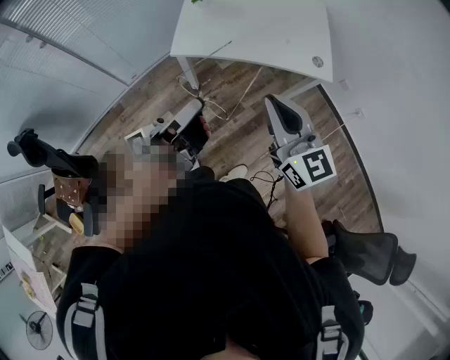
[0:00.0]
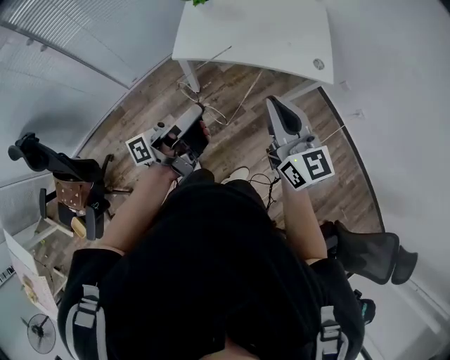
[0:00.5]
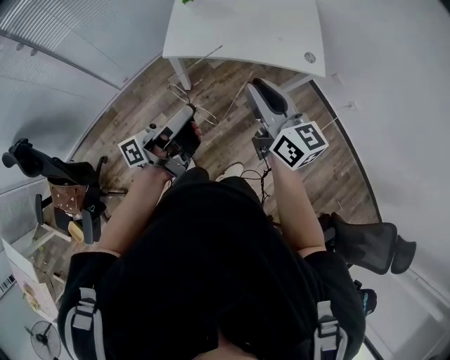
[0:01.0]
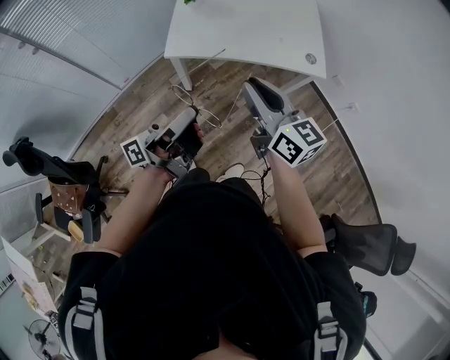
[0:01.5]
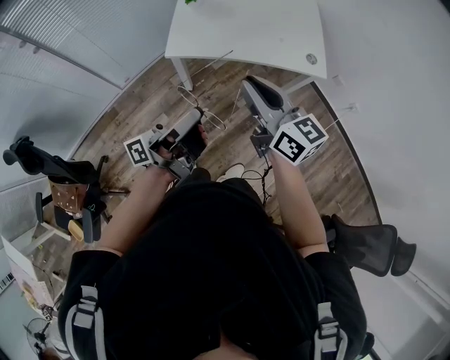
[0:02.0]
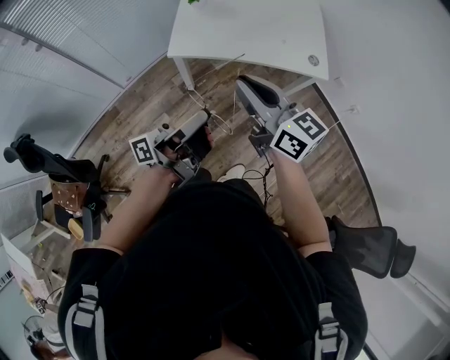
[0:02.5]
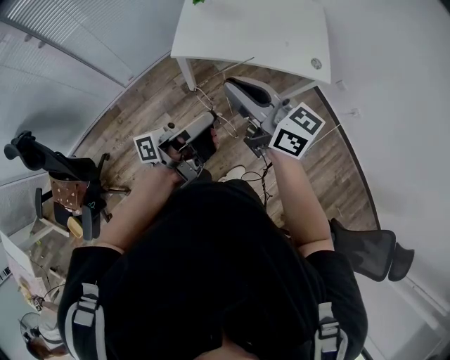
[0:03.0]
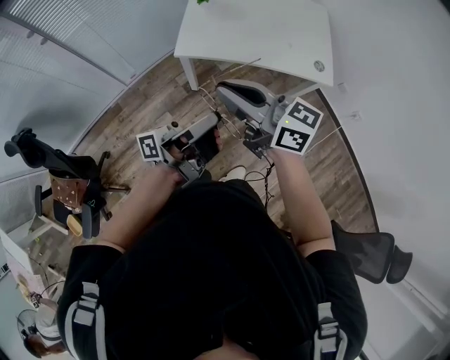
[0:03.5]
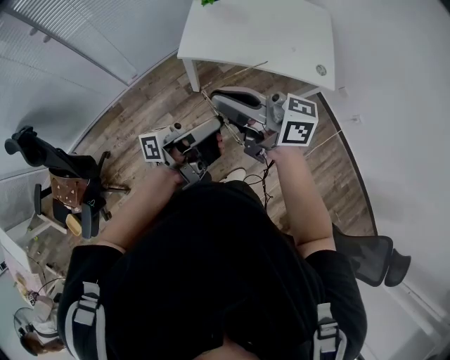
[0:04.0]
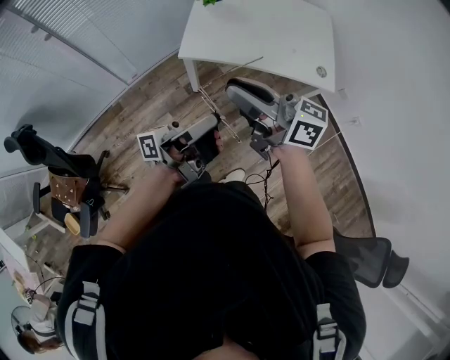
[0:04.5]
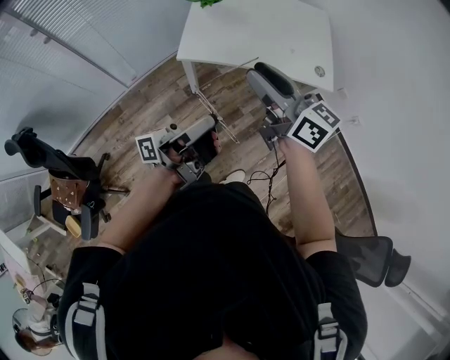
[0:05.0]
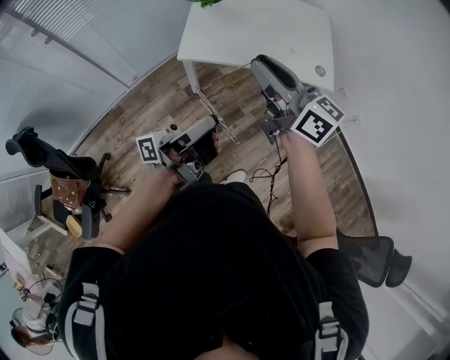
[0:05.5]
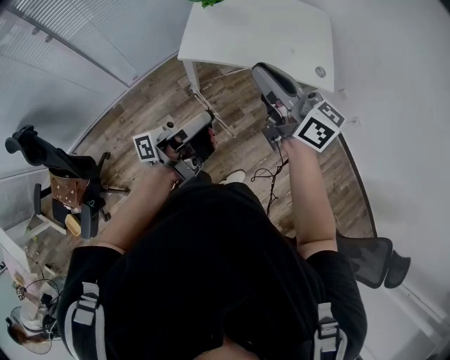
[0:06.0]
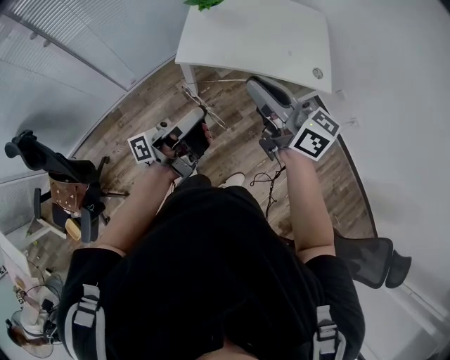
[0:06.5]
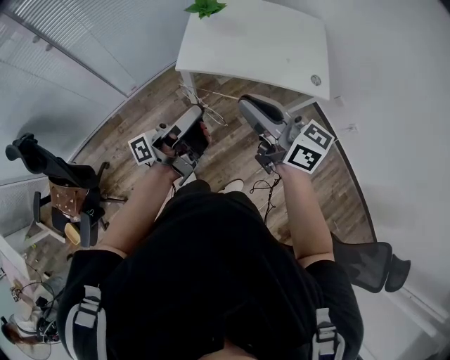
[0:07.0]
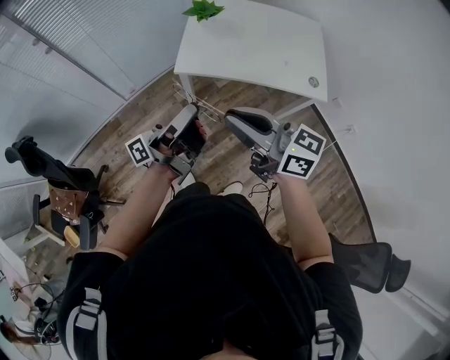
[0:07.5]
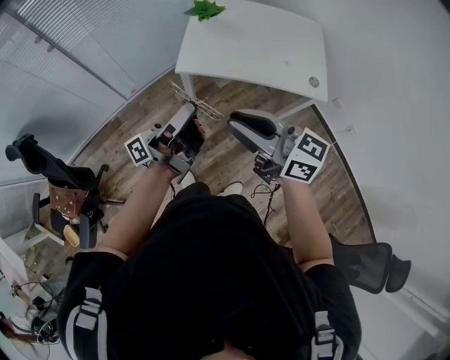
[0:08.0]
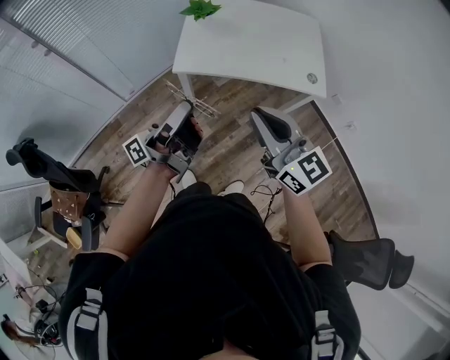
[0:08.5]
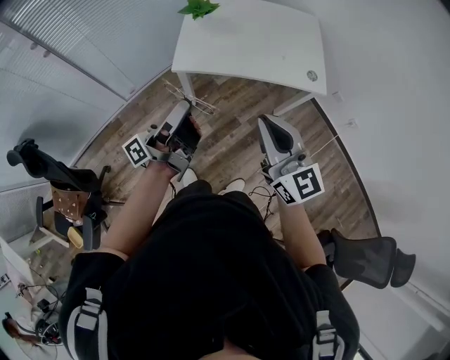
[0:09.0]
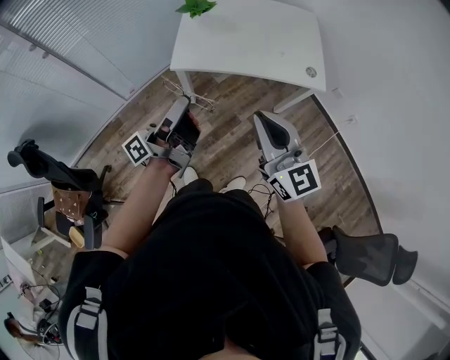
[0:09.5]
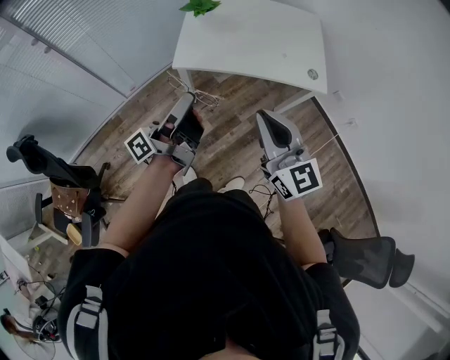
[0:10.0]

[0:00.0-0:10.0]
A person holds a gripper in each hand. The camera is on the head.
0.0 to 2.0 s: The right gripper changes place by approximately 5 cm.
2.0 to 4.0 s: The right gripper shifts by roughly 10 cm, and rotates roughly 40 degrees.
4.0 to 6.0 s: The right gripper ends up some 10 cm from where it was, swivels some 30 degrees, and opens and closes again.
6.0 to 8.0 s: The right gripper ends up about 10 cm from where it was.
8.0 to 10.0 s: The right gripper ends up approximately 5 cm from where it was, and rotates roughly 40 degrees.

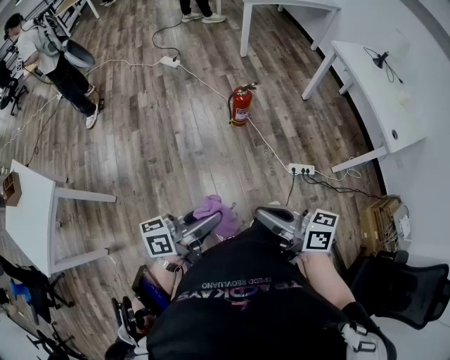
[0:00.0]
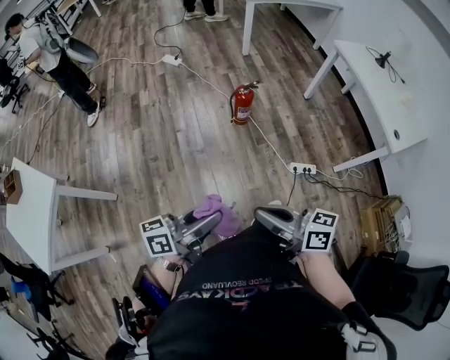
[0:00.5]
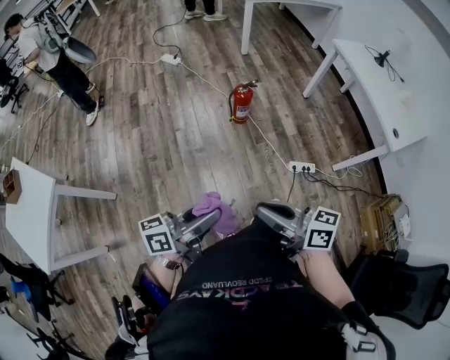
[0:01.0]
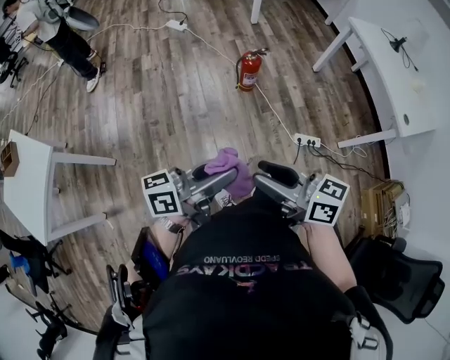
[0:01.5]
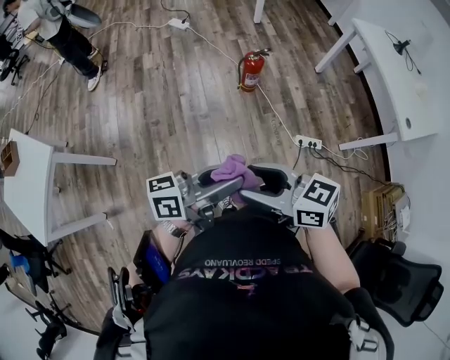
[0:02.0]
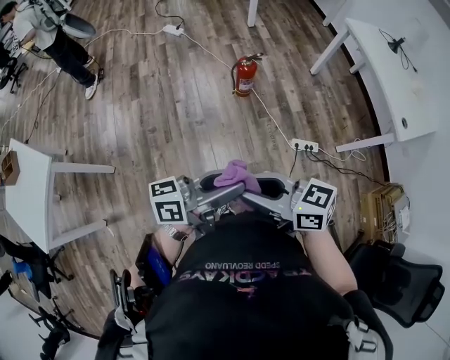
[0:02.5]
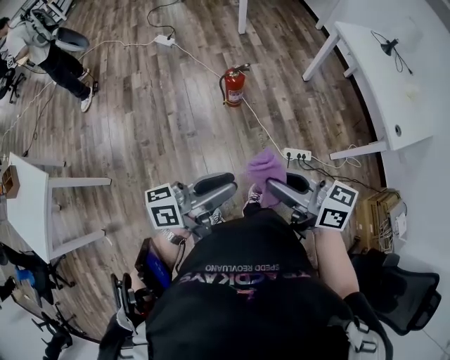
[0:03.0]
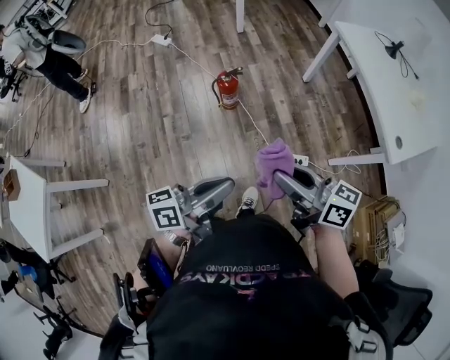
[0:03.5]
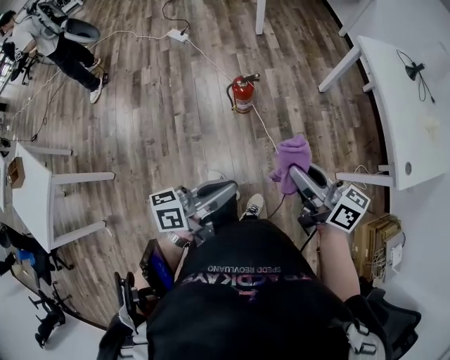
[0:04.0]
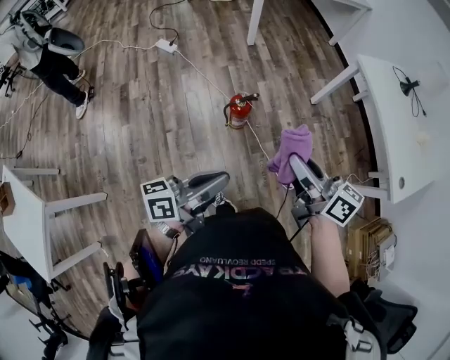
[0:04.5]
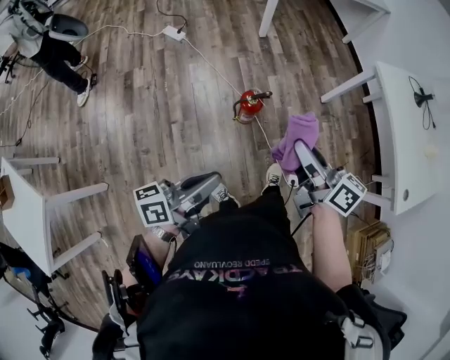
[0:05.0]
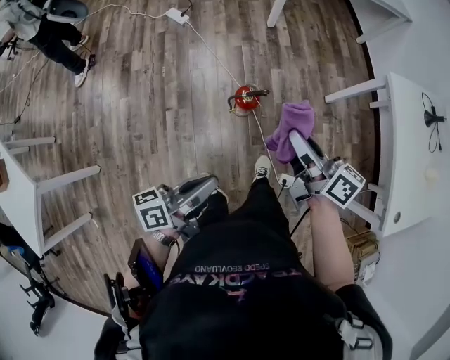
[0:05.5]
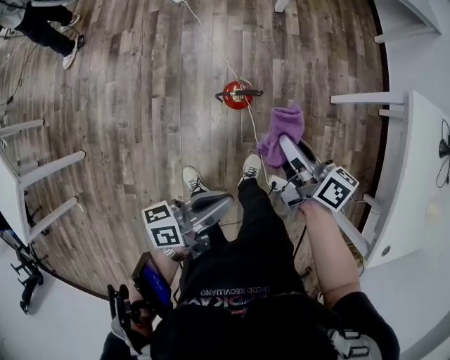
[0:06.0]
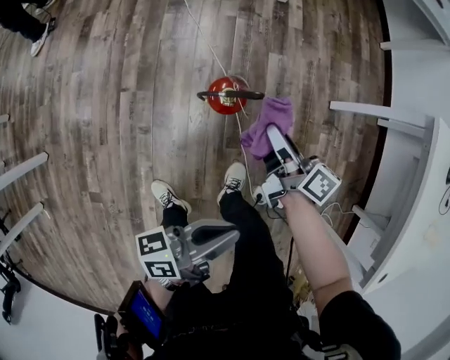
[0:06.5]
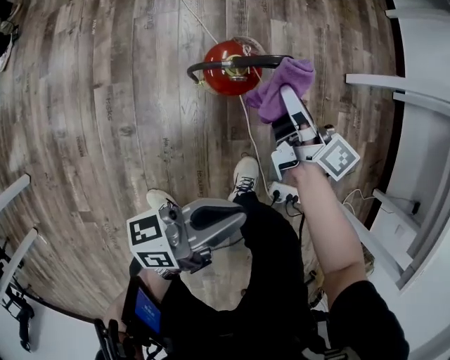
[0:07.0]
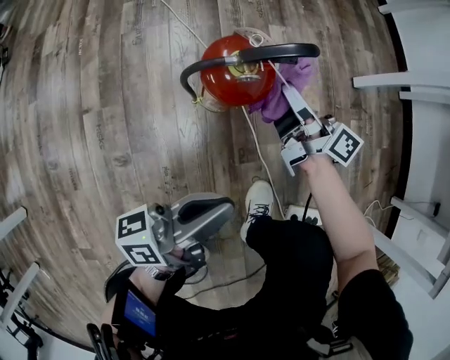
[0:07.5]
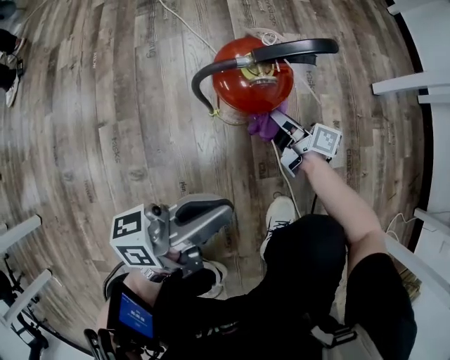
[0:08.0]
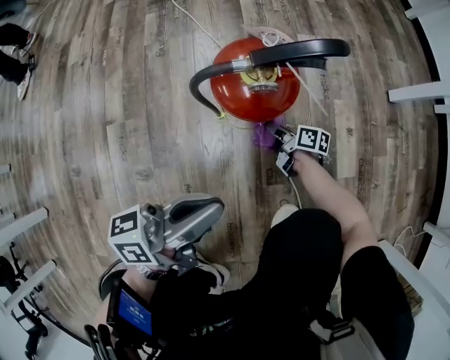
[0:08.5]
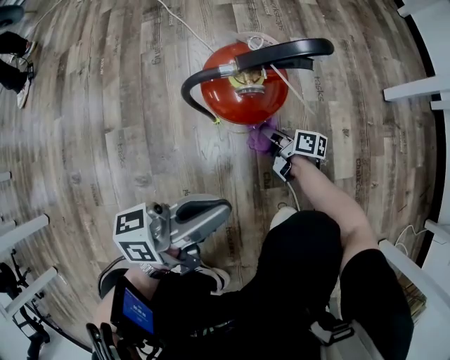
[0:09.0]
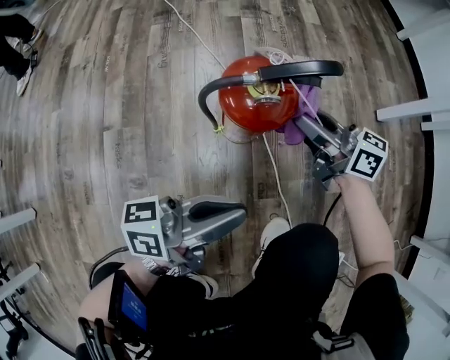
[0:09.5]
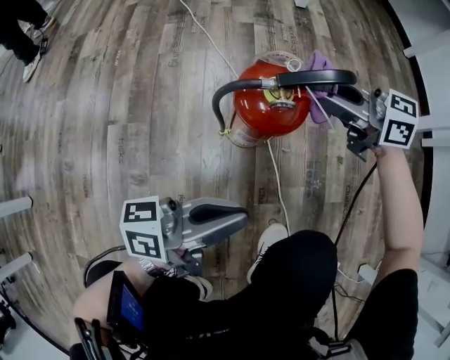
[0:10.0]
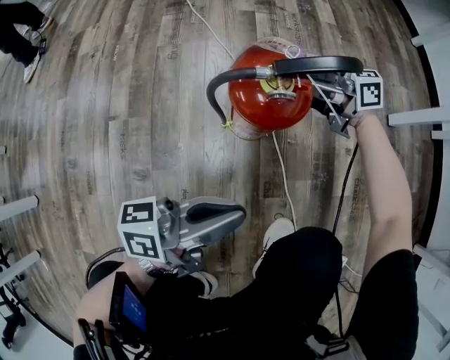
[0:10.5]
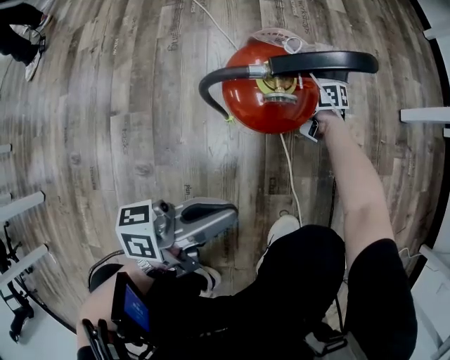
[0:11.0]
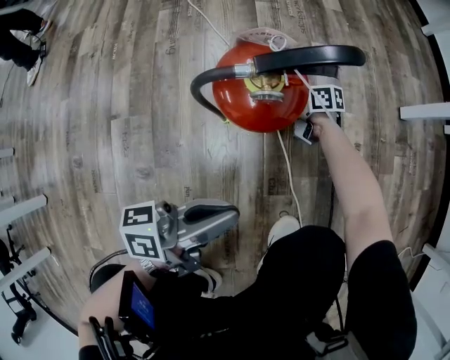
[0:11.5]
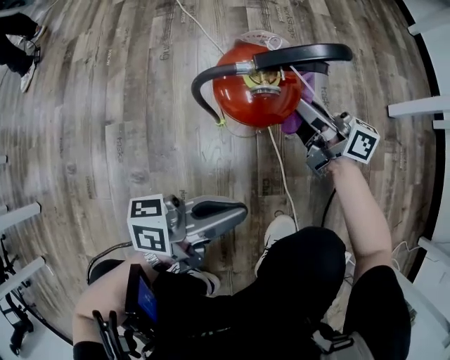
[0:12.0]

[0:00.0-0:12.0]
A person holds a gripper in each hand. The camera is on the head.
0.0 to 2.0 s: The right gripper changes place by approximately 5 cm, swivels about 20 degrees, and opens its fingers.
2.0 to 4.0 s: The right gripper changes place by some 35 cm, changes its angle by some 30 degrees, and closes. The left gripper changes place by some 20 cm, and closes its fingers.
4.0 to 6.0 s: Both grippers move forward and downward, roughly 35 cm.
6.0 to 8.0 s: The left gripper shifts some 40 cm downward, while the right gripper moves downward, approximately 60 cm.
8.0 to 10.0 s: The right gripper heads upward, covering roughly 20 cm, and rotates around the line of its fingers by about 50 degrees, counterclockwise from behind.
10.0 to 12.0 s: The left gripper heads downward, covering some 5 cm; the right gripper reaches some 30 cm downward, then returns, and rotates roughly 40 degrees.

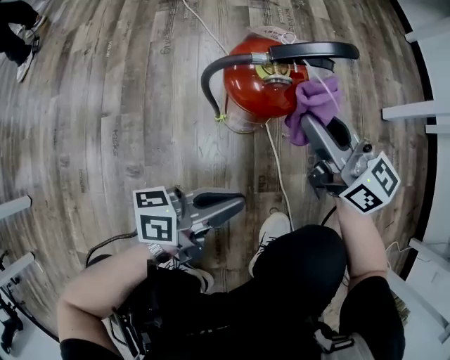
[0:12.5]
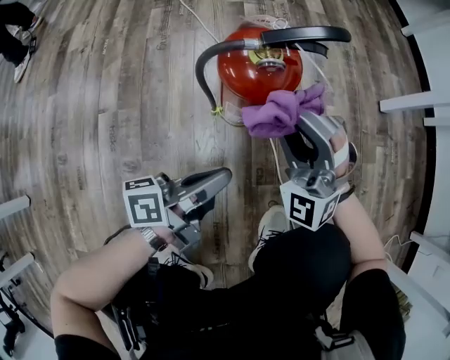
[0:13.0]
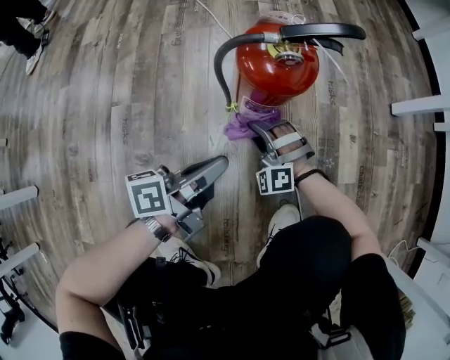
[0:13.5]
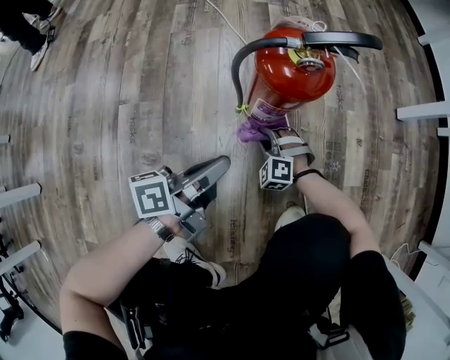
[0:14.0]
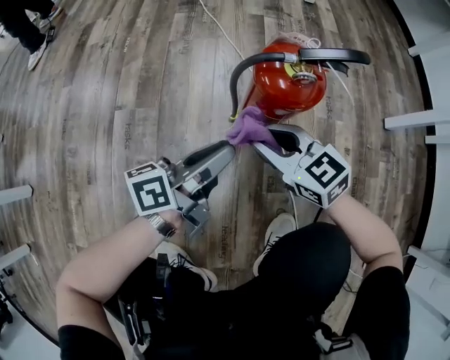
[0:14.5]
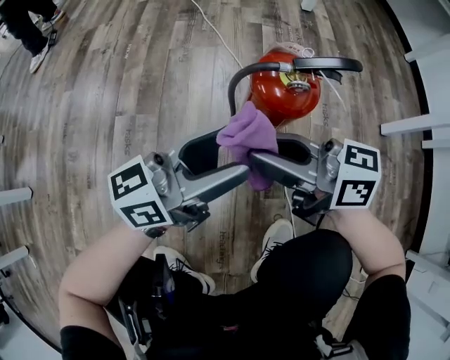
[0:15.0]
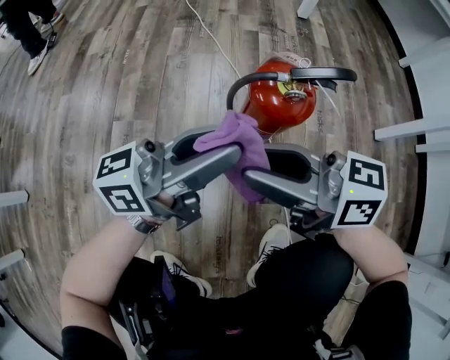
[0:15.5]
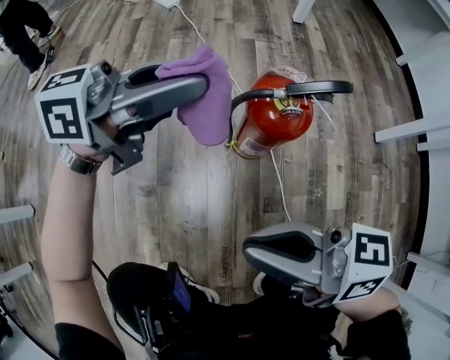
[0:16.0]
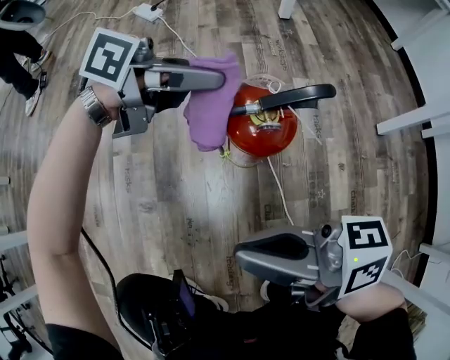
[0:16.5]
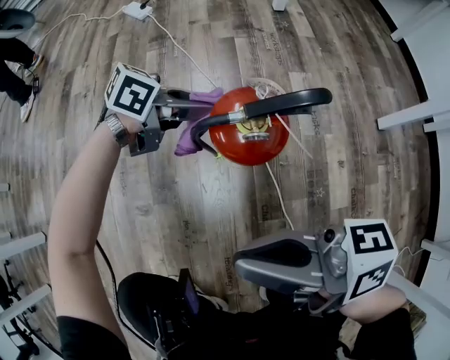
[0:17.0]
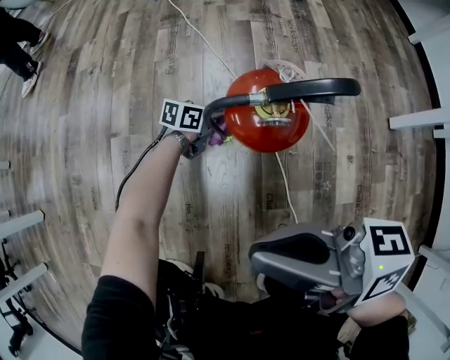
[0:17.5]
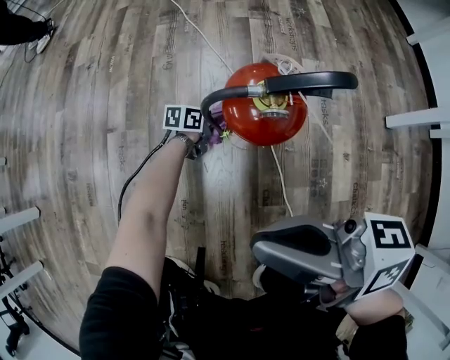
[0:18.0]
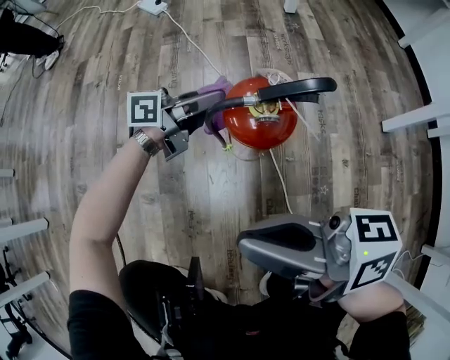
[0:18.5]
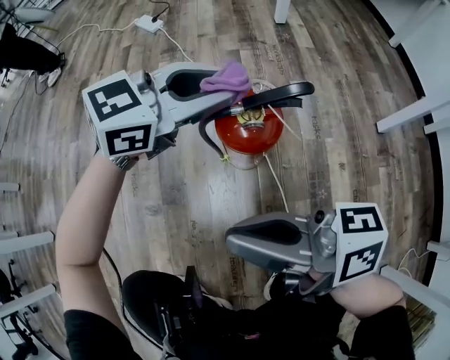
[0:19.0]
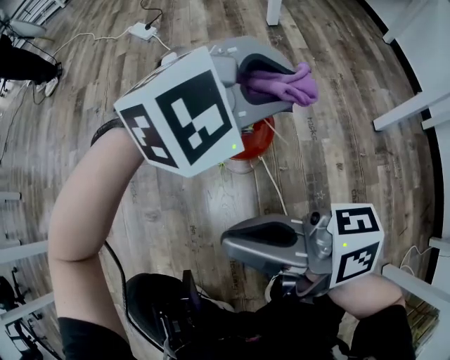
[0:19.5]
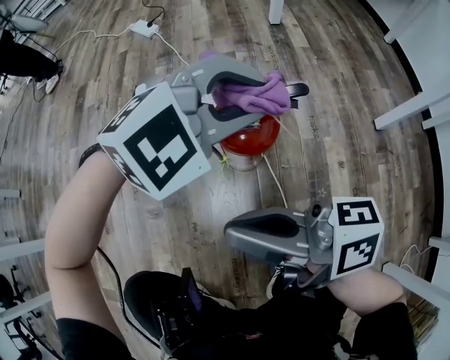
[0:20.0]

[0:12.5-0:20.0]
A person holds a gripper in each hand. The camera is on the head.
12.5 to 14.5 s: The right gripper goes roughly 15 cm to the left and backward, reaches about 35 cm downward, then returns, and changes its angle by some 30 degrees. The left gripper travels to the left and forward by roughly 10 cm, turns by about 20 degrees, and opens.
14.5 to 16.5 s: The left gripper changes place by approximately 20 cm, swivels approximately 50 degrees, and opens, then closes once more; the right gripper goes some 20 cm upward, and rotates around the line of its fingers by roughly 50 degrees, clockwise from behind.
16.5 to 18.0 s: The left gripper moves downward, some 40 cm, and changes its angle by some 40 degrees.
18.0 to 20.0 s: The left gripper goes approximately 50 cm upward, and rotates around the line of its fingers by approximately 100 degrees, clockwise from behind.
